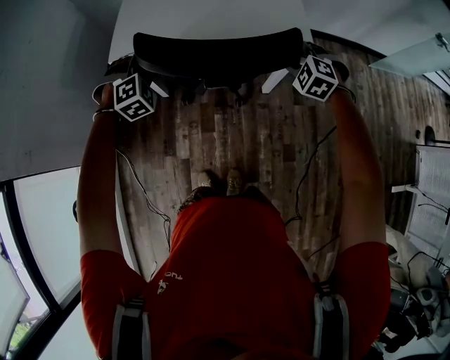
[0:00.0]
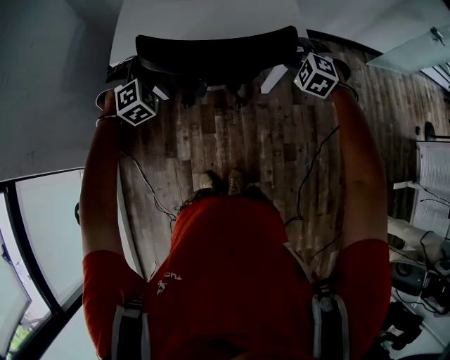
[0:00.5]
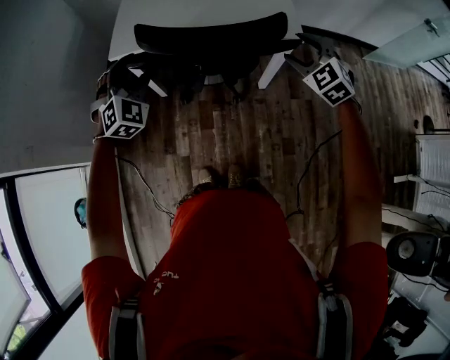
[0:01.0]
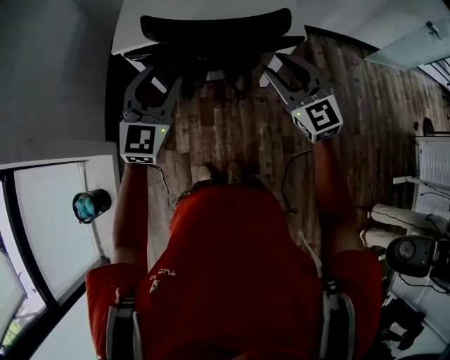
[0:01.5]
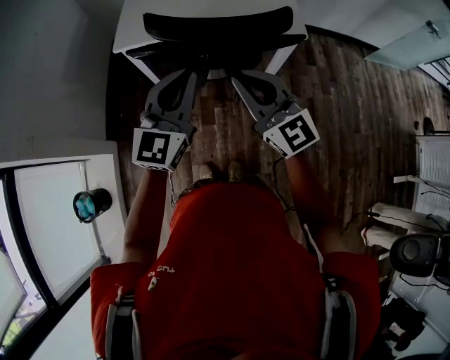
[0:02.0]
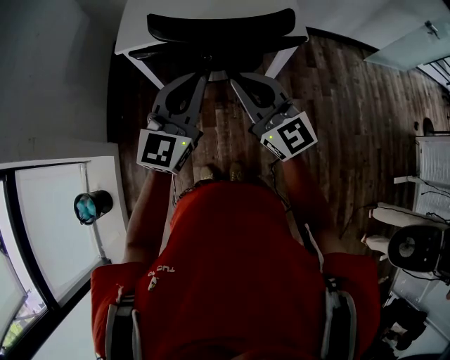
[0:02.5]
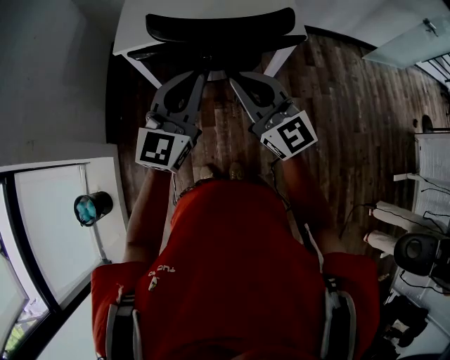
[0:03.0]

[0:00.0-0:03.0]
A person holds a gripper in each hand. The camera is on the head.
0:00.0 to 0:01.5: The left gripper goes approximately 20 cm backward and upward, and angles its fingers upward, by approximately 40 degrees; the right gripper shifts roughly 20 cm backward, upward and to the left, and tilts its fingers some 50 degrees upward.
0:01.5 to 0:03.0: The left gripper changes place by approximately 5 cm, and closes. The right gripper goes about 10 cm to the left, and closes its fingers.

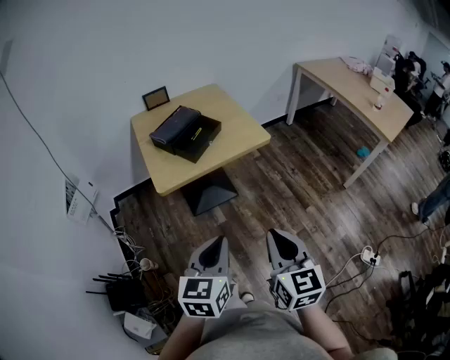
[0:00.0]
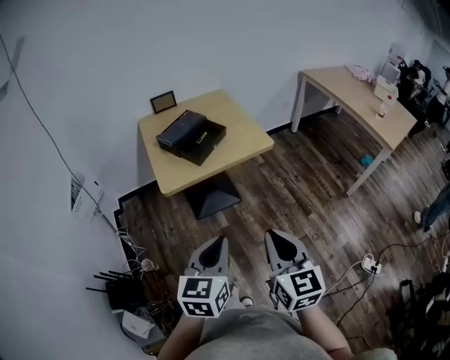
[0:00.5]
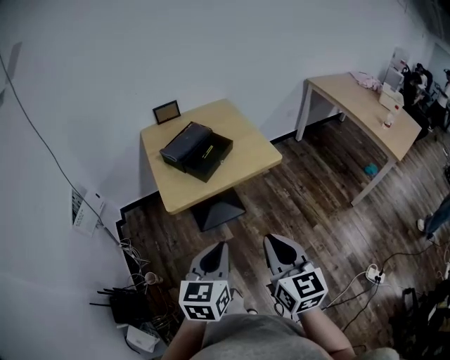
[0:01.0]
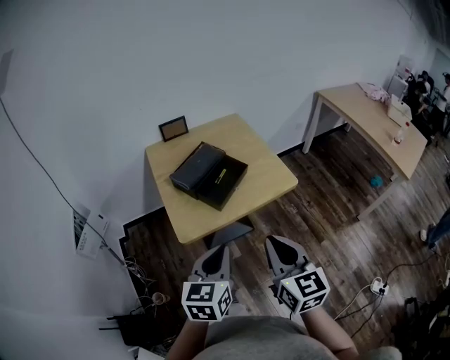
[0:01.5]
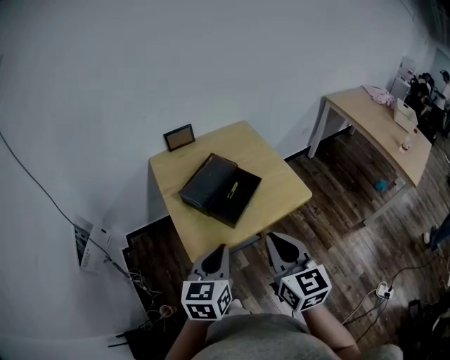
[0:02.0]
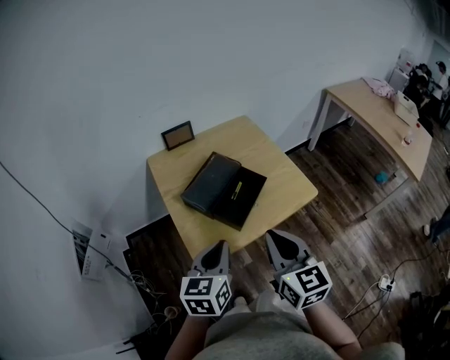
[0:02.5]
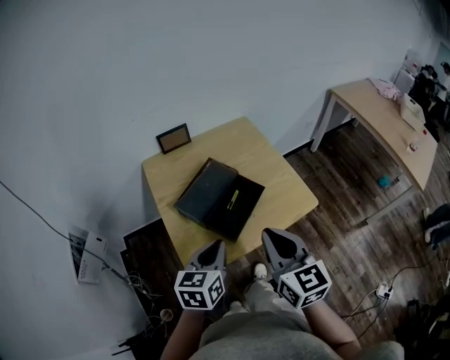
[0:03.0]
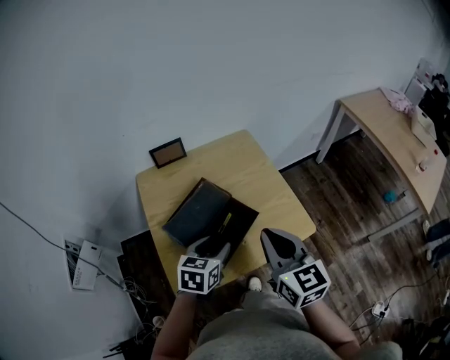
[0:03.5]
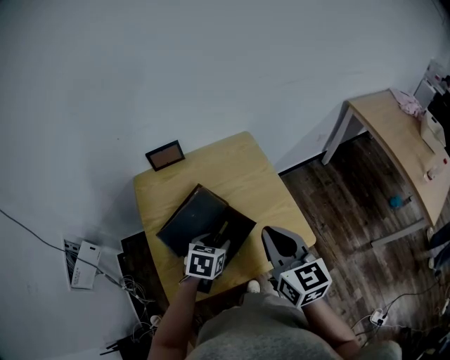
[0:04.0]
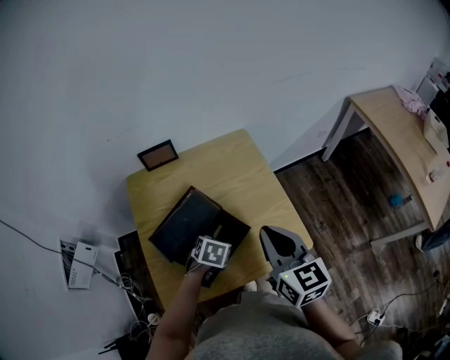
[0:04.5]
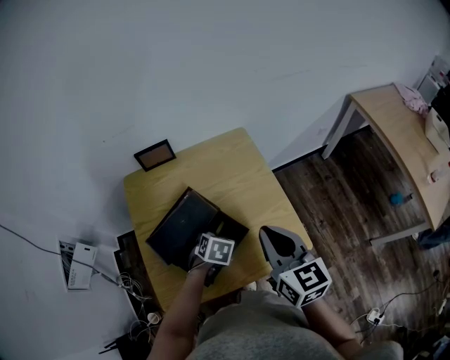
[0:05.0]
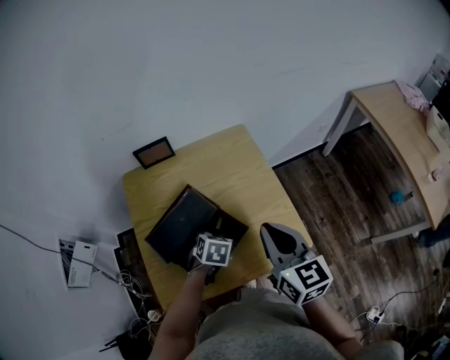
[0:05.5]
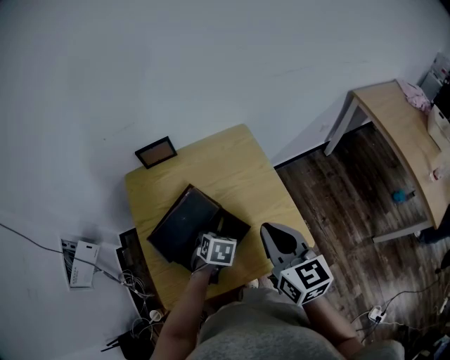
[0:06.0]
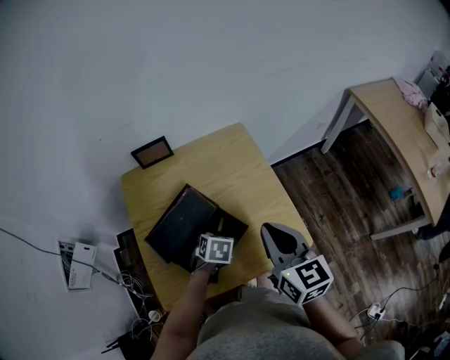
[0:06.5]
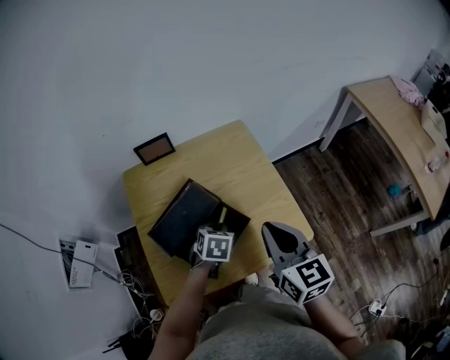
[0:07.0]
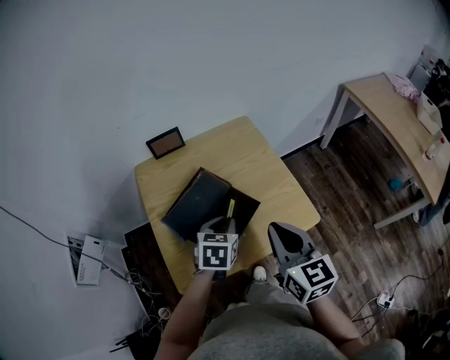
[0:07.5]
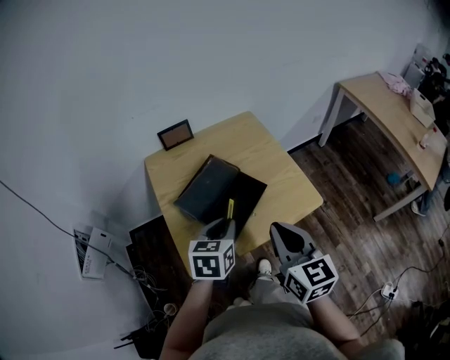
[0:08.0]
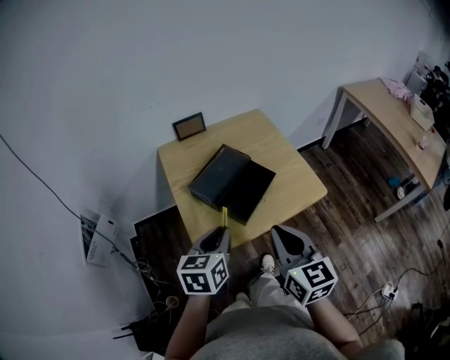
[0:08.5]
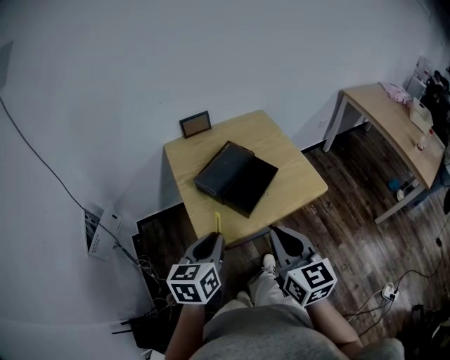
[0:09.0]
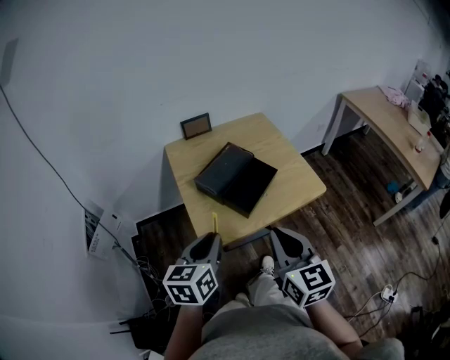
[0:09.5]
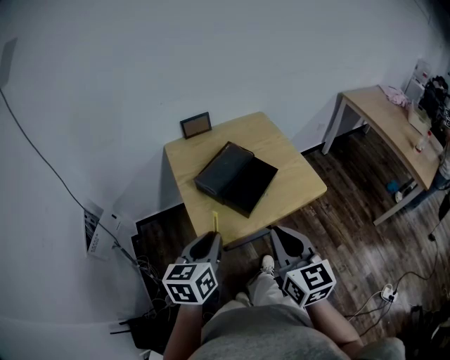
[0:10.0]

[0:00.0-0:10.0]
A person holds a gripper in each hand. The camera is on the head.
0:00.0 to 0:02.0: Both grippers travel together forward and to the left, approximately 30 cm.
0:02.0 to 0:04.0: The right gripper shifts about 25 cm forward, while the left gripper is displaced forward and downward by approximately 30 cm, tips its fingers downward by some 30 degrees, and opens up.
0:04.0 to 0:06.0: The right gripper shifts by some 5 cm, while the left gripper goes about 5 cm downward, and closes and opens again.
0:06.0 to 0:08.0: The right gripper moves backward and to the left, some 20 cm; the left gripper travels upward and backward by about 20 cm, turns by roughly 30 degrees, and closes.
0:08.0 to 0:10.0: Both grippers travel together backward and to the left, some 15 cm.

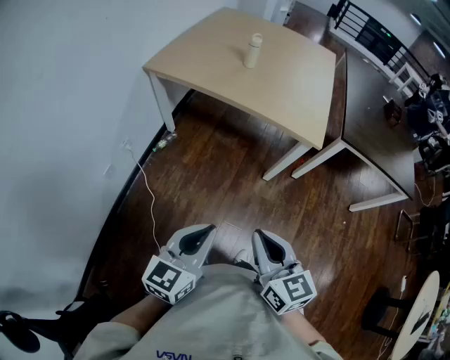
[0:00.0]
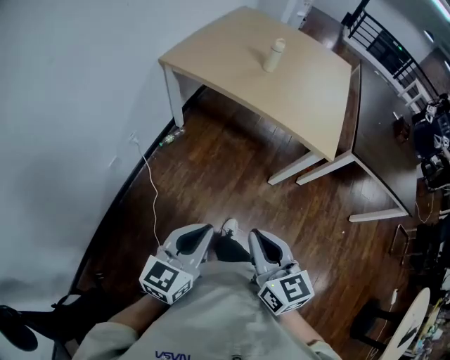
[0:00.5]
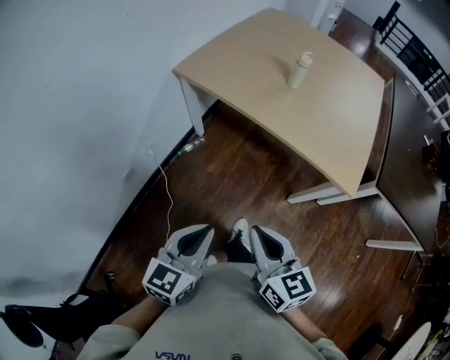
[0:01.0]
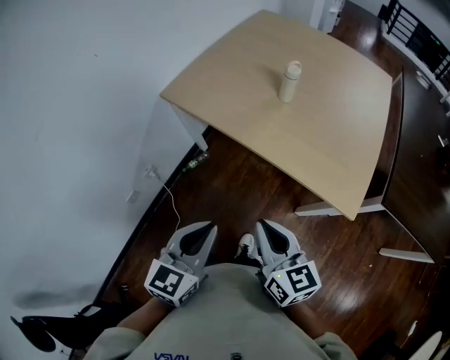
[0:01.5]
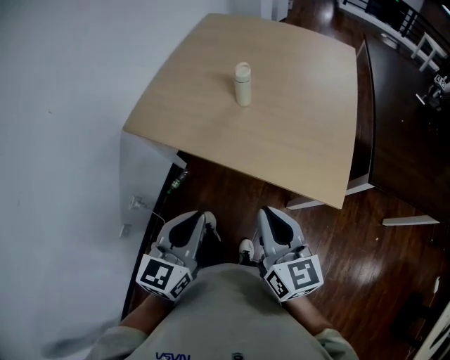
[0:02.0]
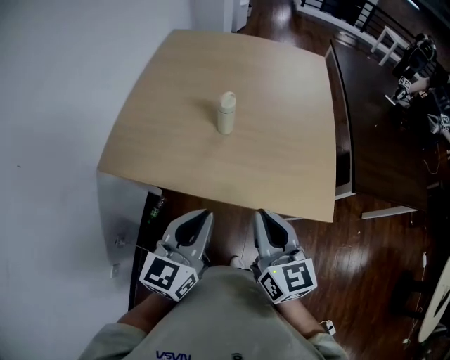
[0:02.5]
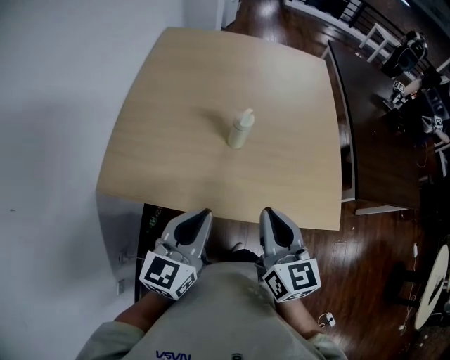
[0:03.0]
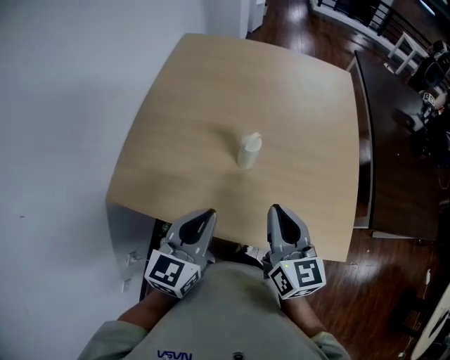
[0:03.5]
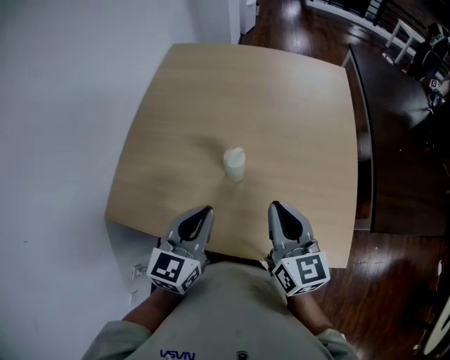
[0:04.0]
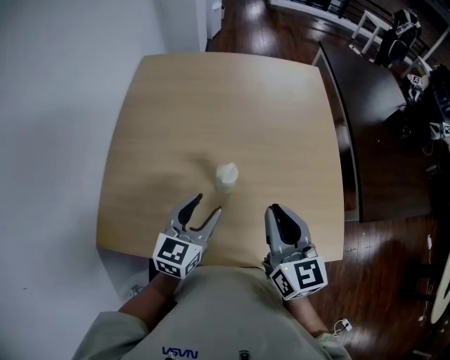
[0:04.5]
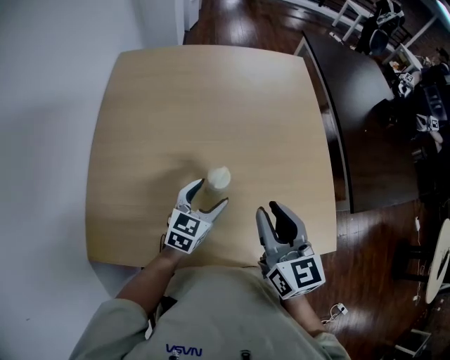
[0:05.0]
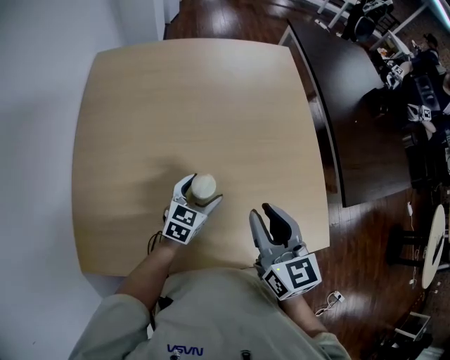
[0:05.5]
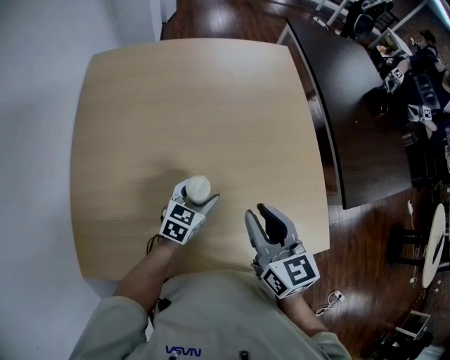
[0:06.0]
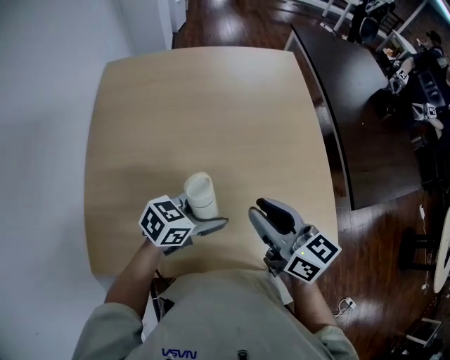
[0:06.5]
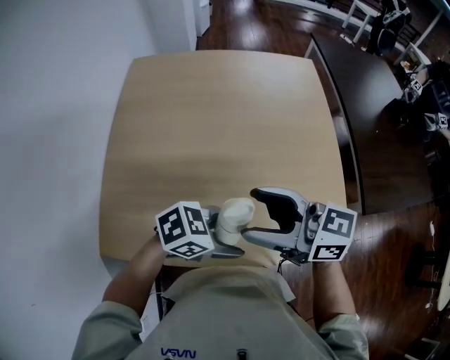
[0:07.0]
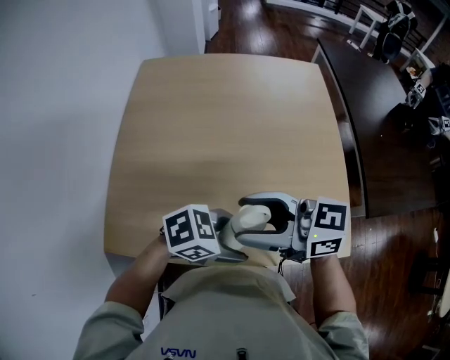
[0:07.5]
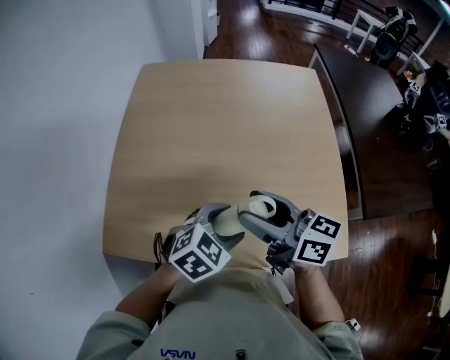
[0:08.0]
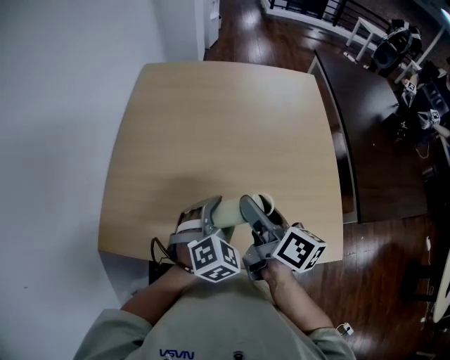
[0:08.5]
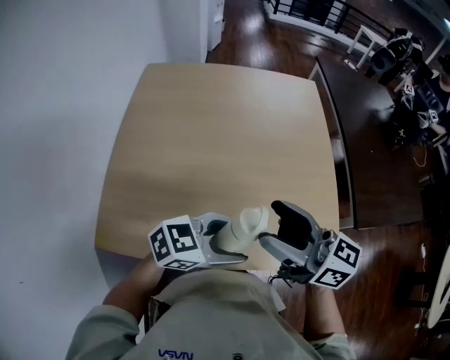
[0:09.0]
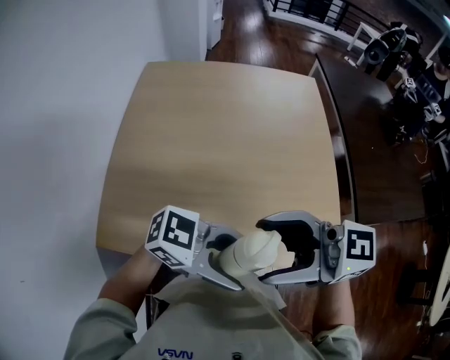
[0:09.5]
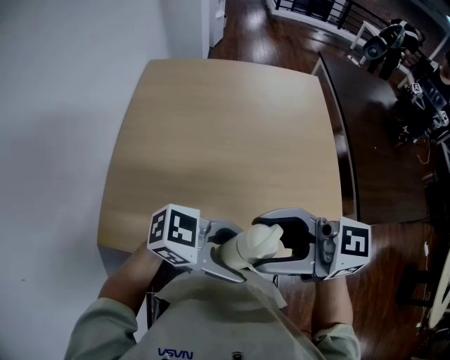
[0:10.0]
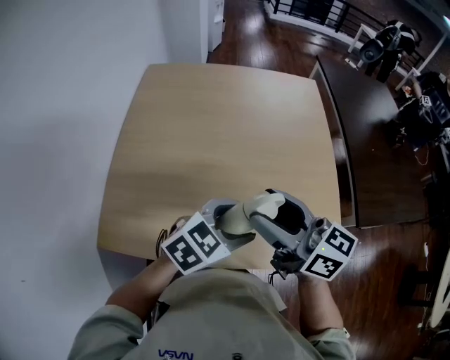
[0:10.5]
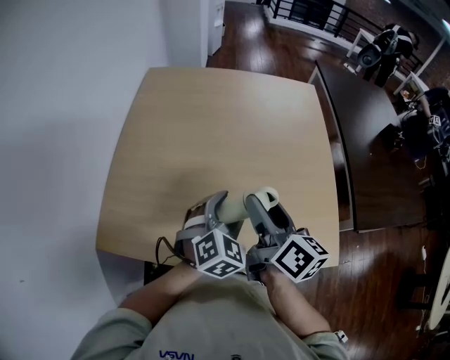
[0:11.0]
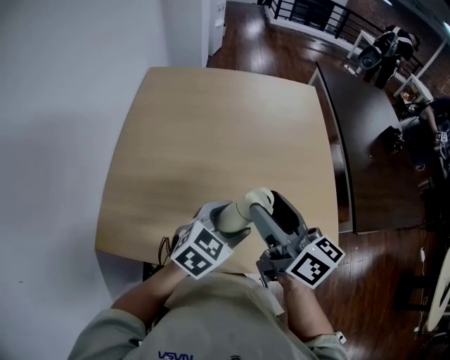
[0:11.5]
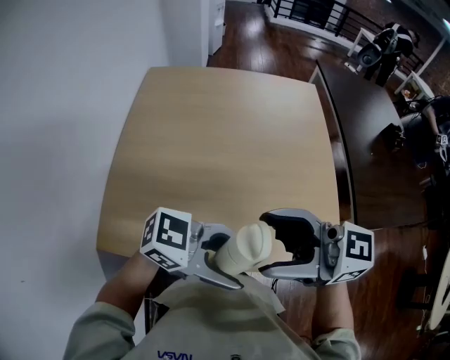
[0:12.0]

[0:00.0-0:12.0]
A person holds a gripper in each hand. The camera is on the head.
0:00.0 to 0:02.0: Both grippers travel together forward, roughly 30 cm.
0:02.0 to 0:04.0: The two grippers go roughly 25 cm forward.
0:04.0 to 0:06.0: The left gripper is displaced downward and forward by roughly 25 cm, swivels approximately 30 degrees, and opens.
0:06.0 to 0:08.0: The right gripper moves some 10 cm, changes its angle by roughly 40 degrees, and opens. Meanwhile the left gripper moves roughly 20 cm, and swivels roughly 20 degrees.
0:08.0 to 0:10.0: The left gripper ends up some 15 cm from where it was, and angles its fingers upward, by some 30 degrees. The right gripper goes some 10 cm upward, and turns by roughly 30 degrees.
0:10.0 to 0:12.0: The left gripper travels downward and back again, approximately 10 cm each way. The right gripper moves approximately 10 cm downward and comes back.

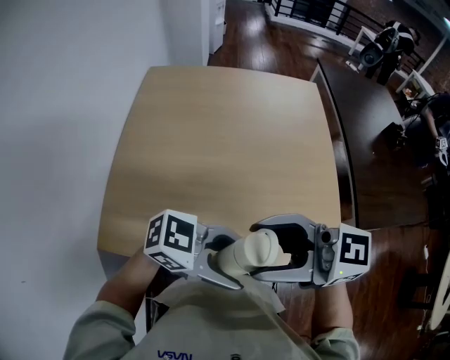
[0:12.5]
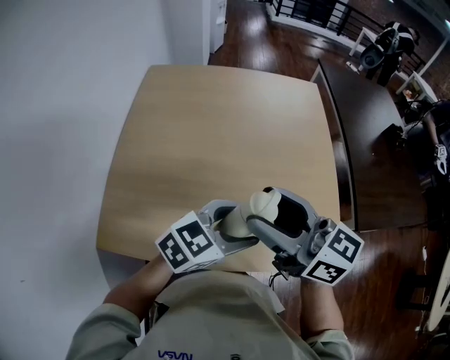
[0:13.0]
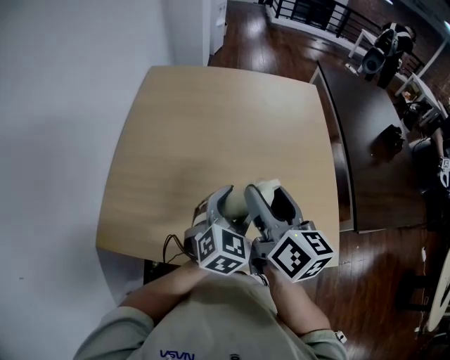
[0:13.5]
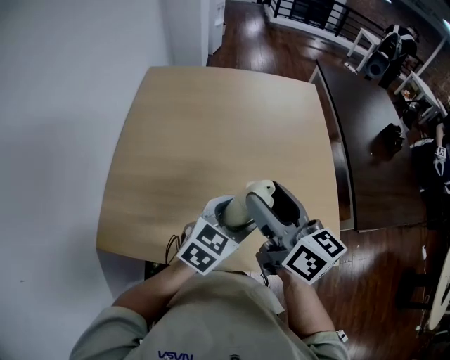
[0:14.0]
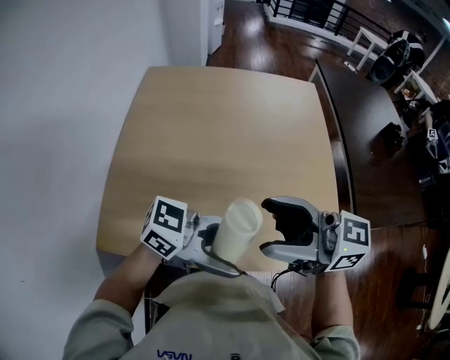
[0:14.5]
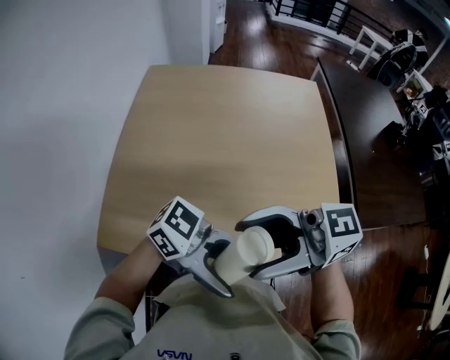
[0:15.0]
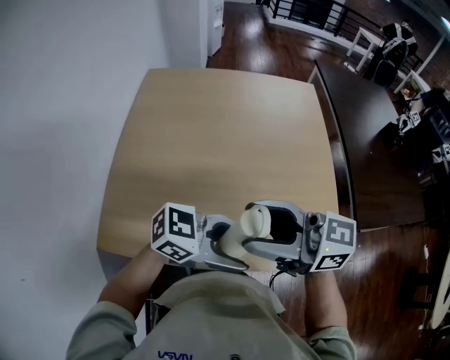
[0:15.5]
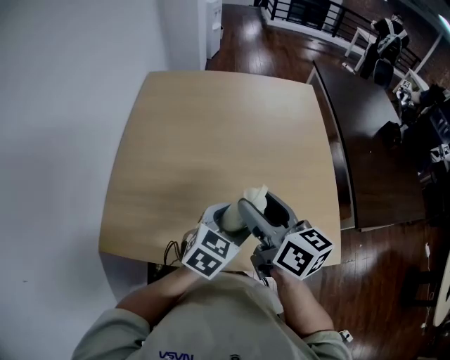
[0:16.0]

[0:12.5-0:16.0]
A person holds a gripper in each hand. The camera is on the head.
0:12.5 to 0:14.5: The right gripper travels downward and back again, some 10 cm each way; the left gripper reaches approximately 10 cm downward, then returns.
0:14.5 to 0:16.0: The grippers both shift downward by roughly 10 cm. The right gripper changes its angle by roughly 40 degrees. The left gripper tips its fingers downward by about 30 degrees.
